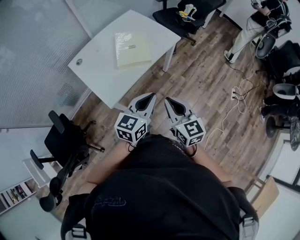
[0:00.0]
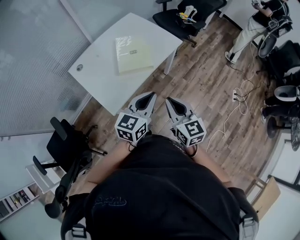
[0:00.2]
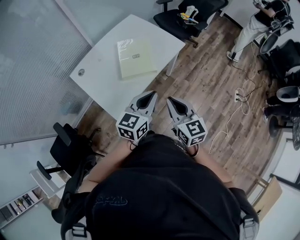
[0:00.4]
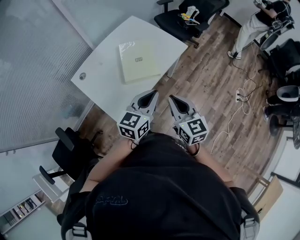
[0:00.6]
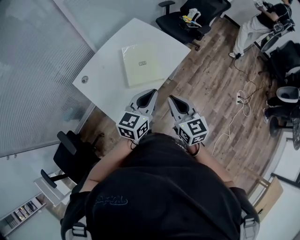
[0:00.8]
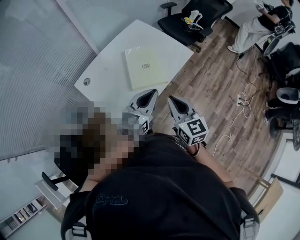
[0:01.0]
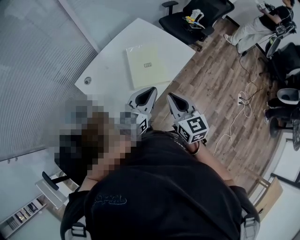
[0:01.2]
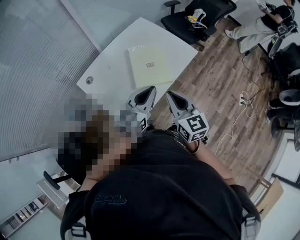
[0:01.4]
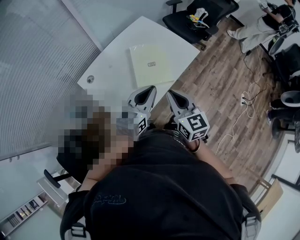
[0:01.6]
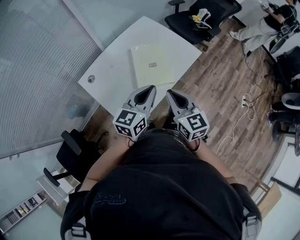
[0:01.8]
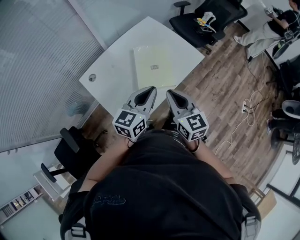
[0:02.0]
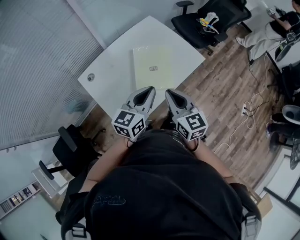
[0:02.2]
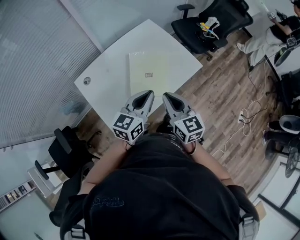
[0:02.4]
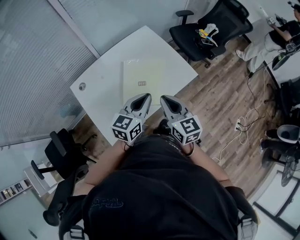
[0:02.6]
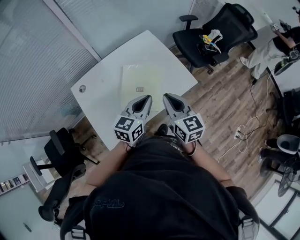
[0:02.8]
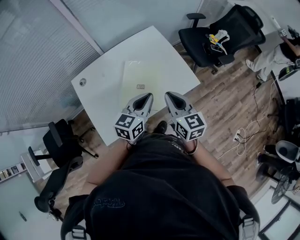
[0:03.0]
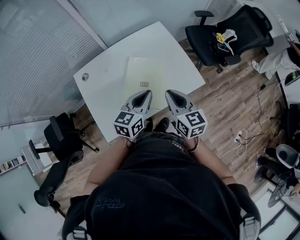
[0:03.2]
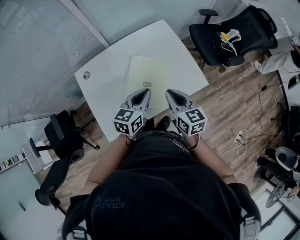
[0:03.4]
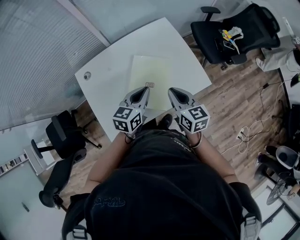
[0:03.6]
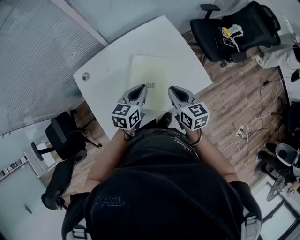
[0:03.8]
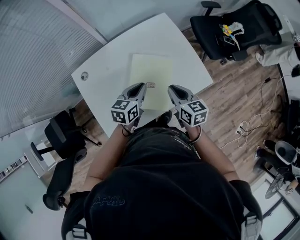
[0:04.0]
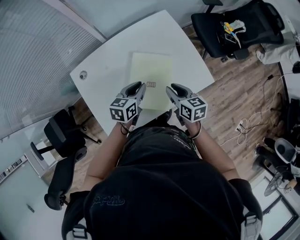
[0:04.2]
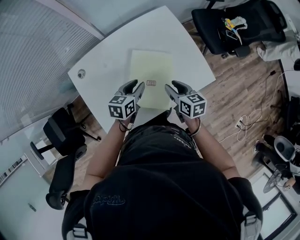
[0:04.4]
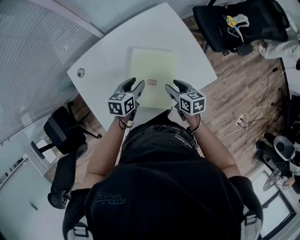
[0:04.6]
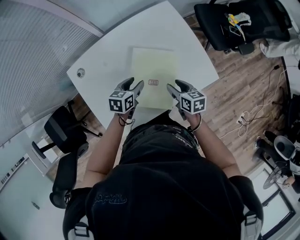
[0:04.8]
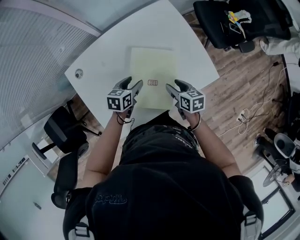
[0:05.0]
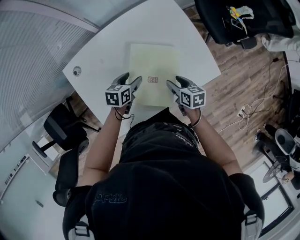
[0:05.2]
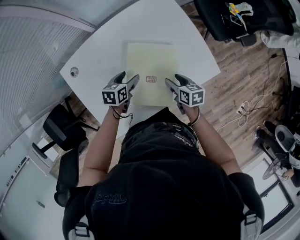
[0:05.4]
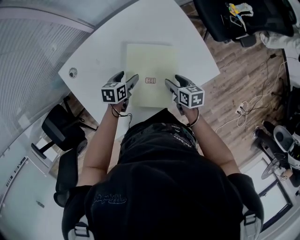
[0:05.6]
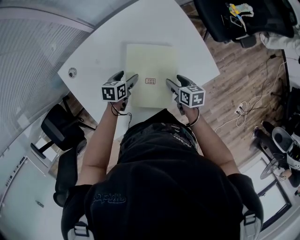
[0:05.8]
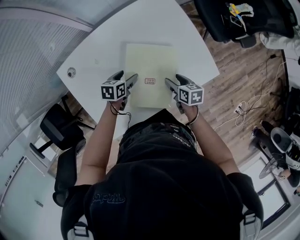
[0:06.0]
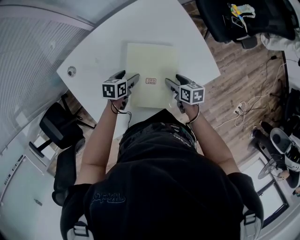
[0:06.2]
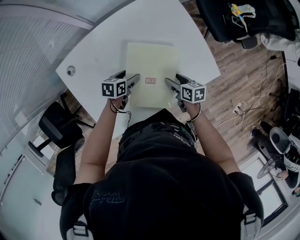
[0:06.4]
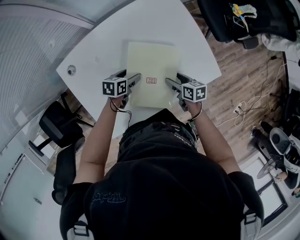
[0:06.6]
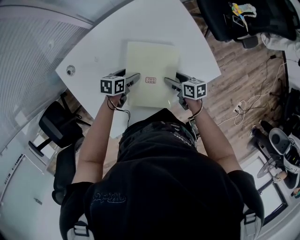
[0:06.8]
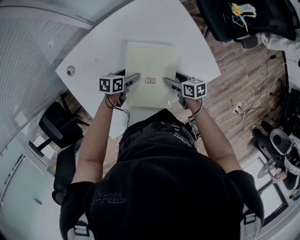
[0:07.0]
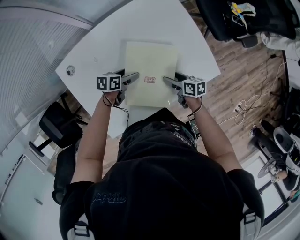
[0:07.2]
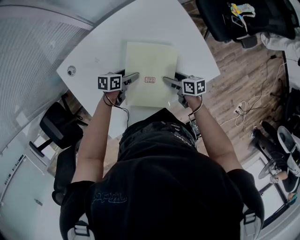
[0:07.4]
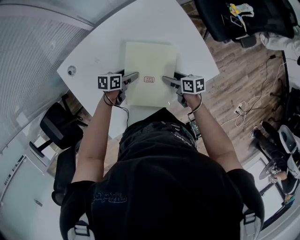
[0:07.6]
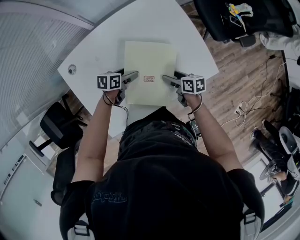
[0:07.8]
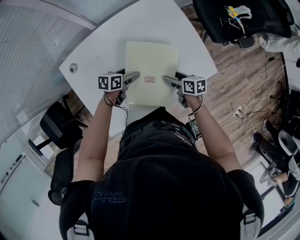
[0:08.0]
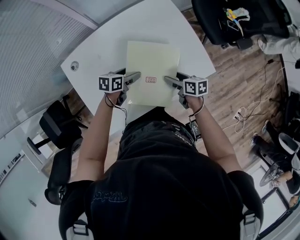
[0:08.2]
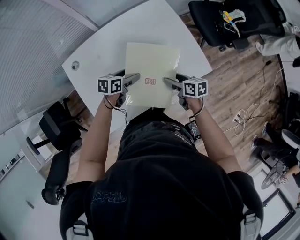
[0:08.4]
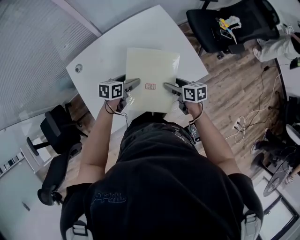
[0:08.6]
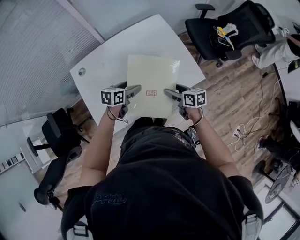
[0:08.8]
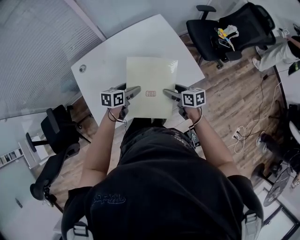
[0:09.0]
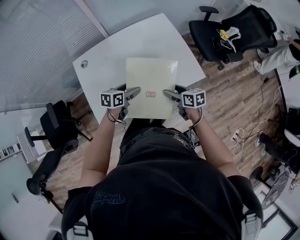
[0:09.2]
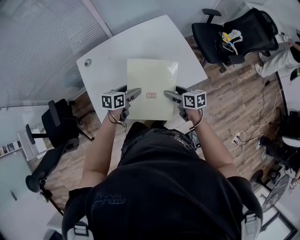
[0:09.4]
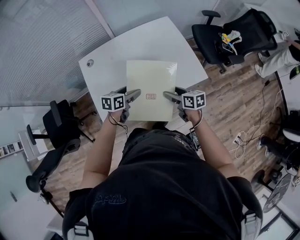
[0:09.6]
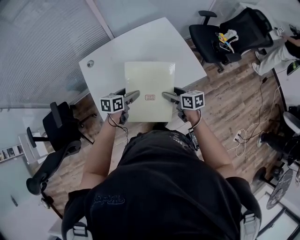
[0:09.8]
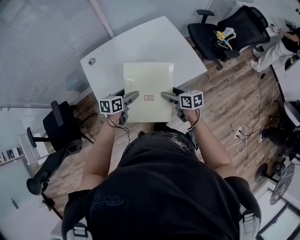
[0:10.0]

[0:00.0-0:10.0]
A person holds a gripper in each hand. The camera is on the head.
0:00.0 to 0:01.4: The grippers both shift forward and to the left by some 20 cm.
0:01.4 to 0:02.8: Both grippers travel together forward and to the right, roughly 20 cm.
0:02.8 to 0:04.2: The left gripper goes about 20 cm downward, forward and to the left, and rotates roughly 20 degrees, while the right gripper is displaced downward and forward by some 20 cm, and swivels some 30 degrees.
0:04.2 to 0:05.8: Both grippers travel together downward, about 15 cm. The left gripper turns by about 20 degrees, and opens. Meanwhile the right gripper opens its fingers.
0:05.8 to 0:07.2: The grippers move only a little.
0:07.2 to 0:08.6: The two grippers go some 10 cm upward.
0:08.6 to 0:10.0: The left gripper travels backward and to the left by roughly 15 cm, while the right gripper is displaced backward, to the left and upward by approximately 15 cm.

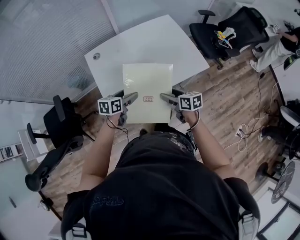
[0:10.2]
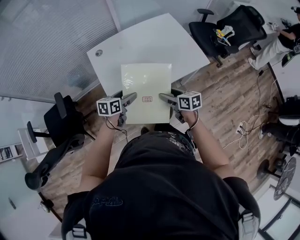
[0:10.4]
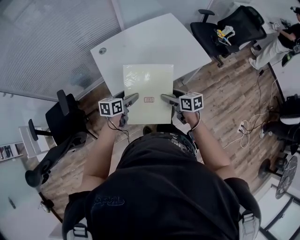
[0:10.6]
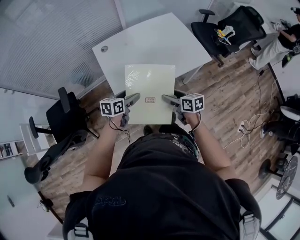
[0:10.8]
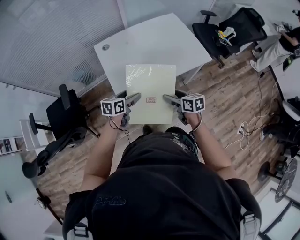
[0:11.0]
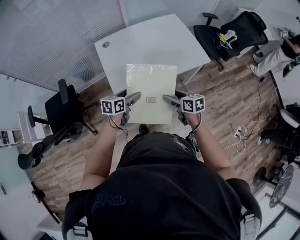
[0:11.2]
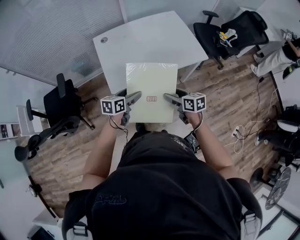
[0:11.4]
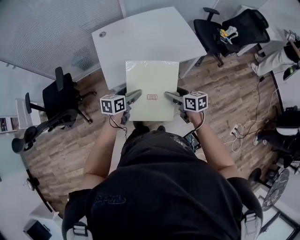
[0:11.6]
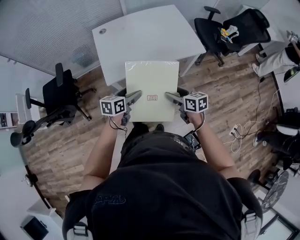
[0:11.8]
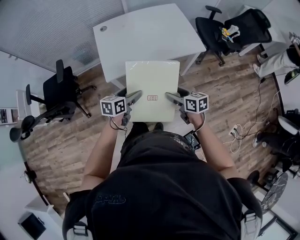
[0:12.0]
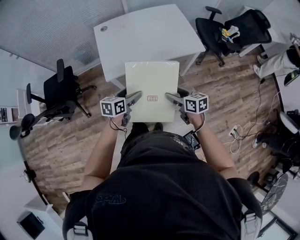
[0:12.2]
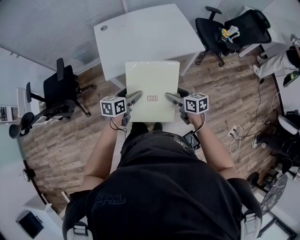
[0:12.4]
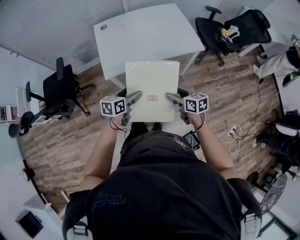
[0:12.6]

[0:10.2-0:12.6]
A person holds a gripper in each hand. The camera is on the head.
0:10.2 to 0:11.4: Both grippers travel together backward, some 15 cm.
0:11.4 to 0:12.6: The grippers both shift backward and to the right by some 10 cm.

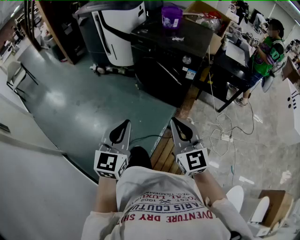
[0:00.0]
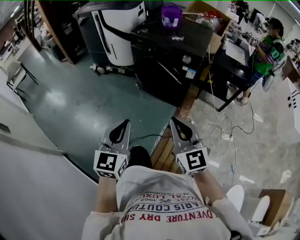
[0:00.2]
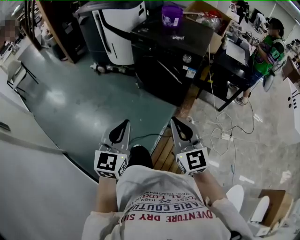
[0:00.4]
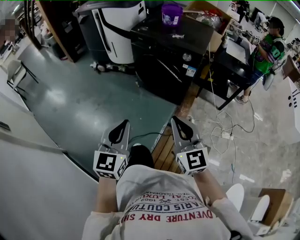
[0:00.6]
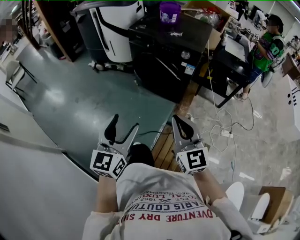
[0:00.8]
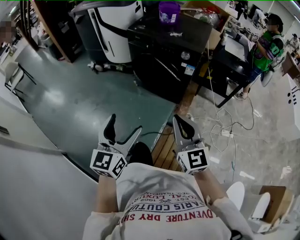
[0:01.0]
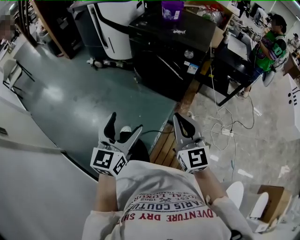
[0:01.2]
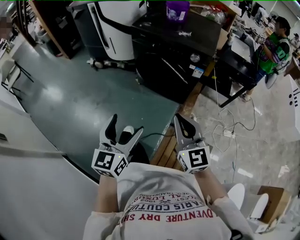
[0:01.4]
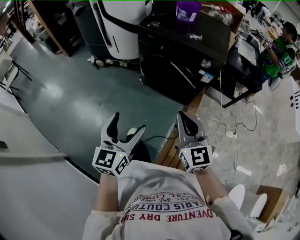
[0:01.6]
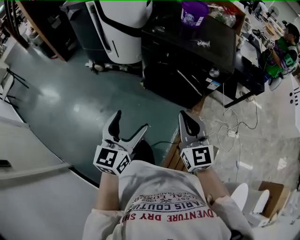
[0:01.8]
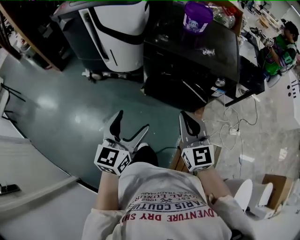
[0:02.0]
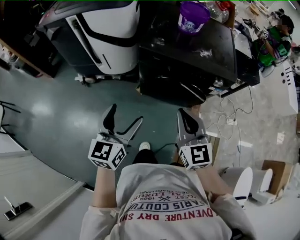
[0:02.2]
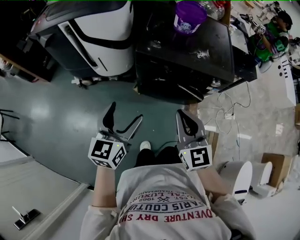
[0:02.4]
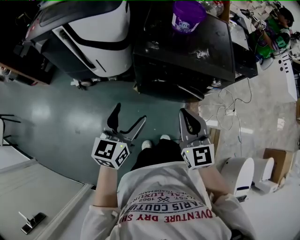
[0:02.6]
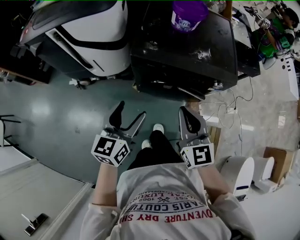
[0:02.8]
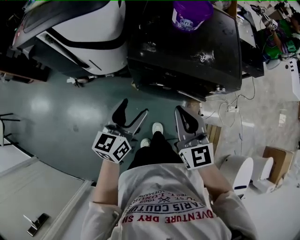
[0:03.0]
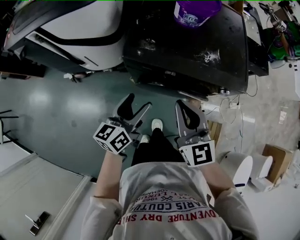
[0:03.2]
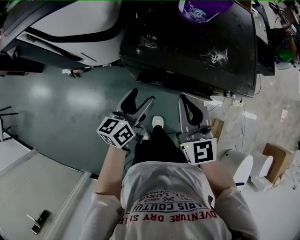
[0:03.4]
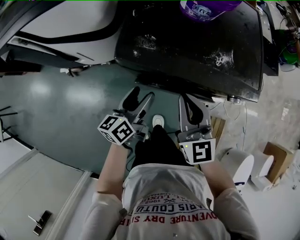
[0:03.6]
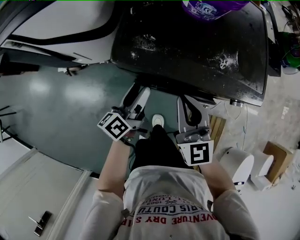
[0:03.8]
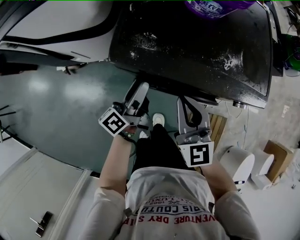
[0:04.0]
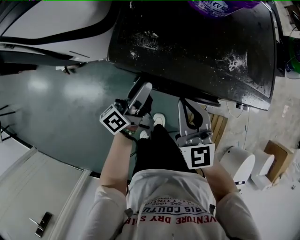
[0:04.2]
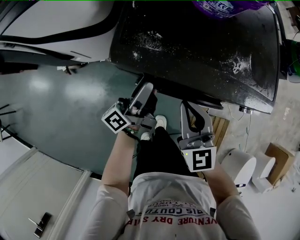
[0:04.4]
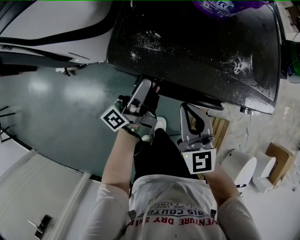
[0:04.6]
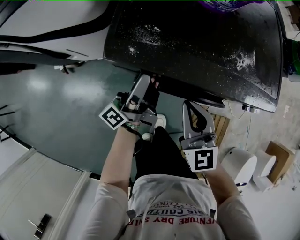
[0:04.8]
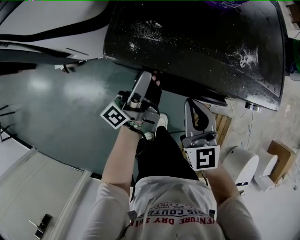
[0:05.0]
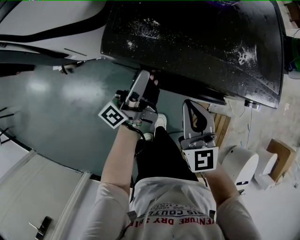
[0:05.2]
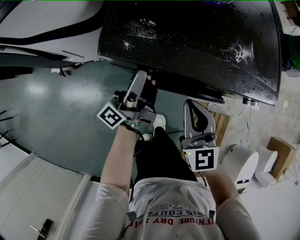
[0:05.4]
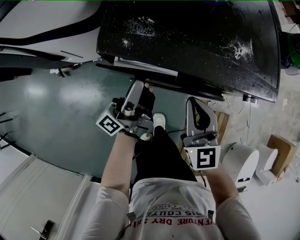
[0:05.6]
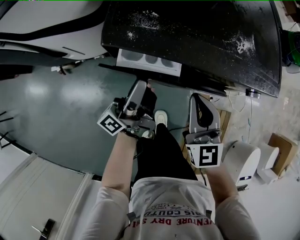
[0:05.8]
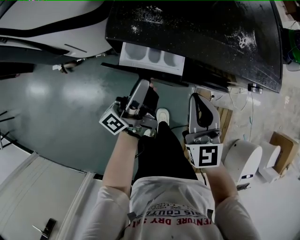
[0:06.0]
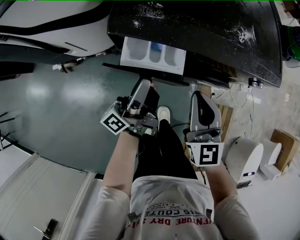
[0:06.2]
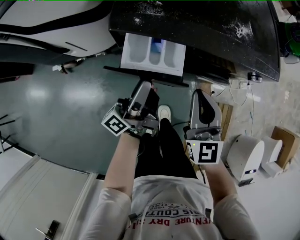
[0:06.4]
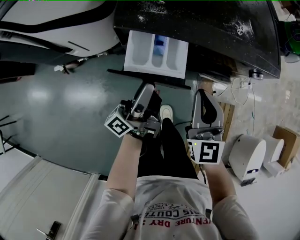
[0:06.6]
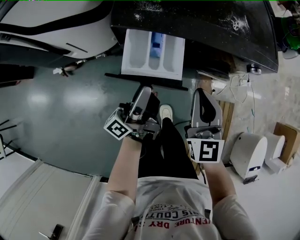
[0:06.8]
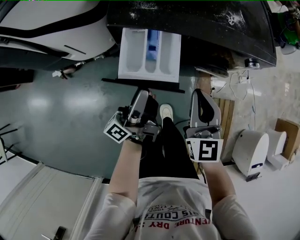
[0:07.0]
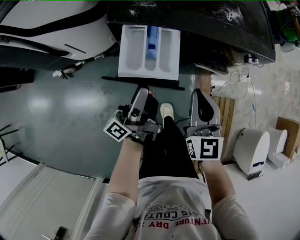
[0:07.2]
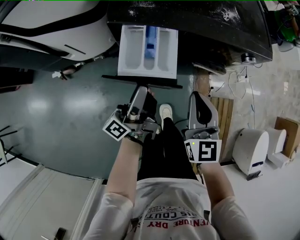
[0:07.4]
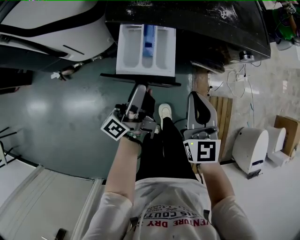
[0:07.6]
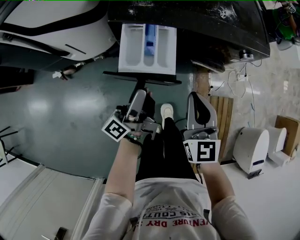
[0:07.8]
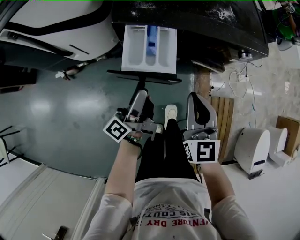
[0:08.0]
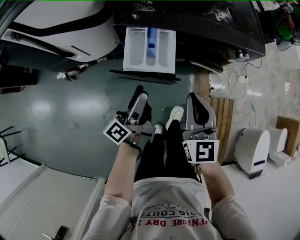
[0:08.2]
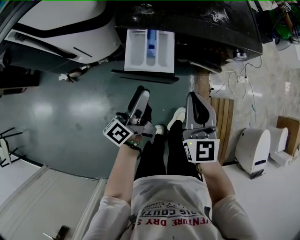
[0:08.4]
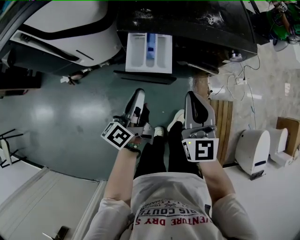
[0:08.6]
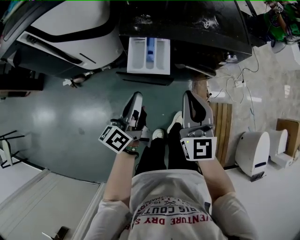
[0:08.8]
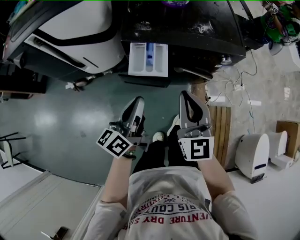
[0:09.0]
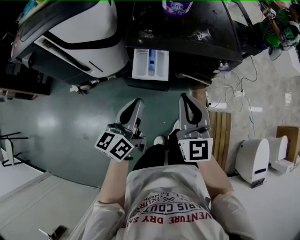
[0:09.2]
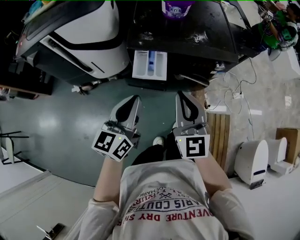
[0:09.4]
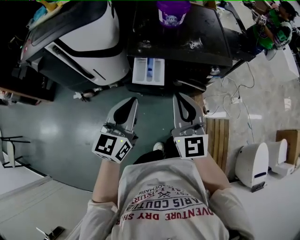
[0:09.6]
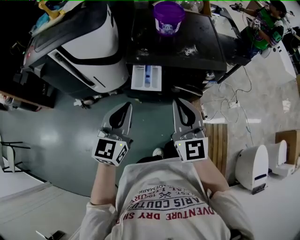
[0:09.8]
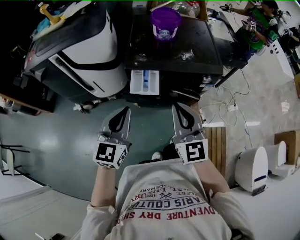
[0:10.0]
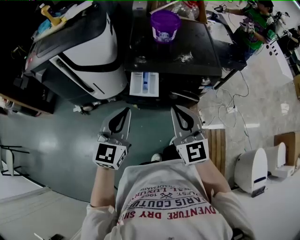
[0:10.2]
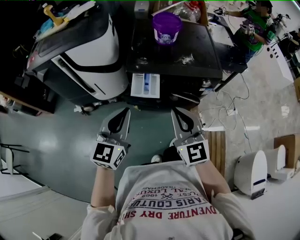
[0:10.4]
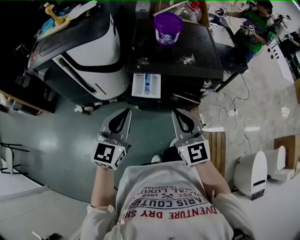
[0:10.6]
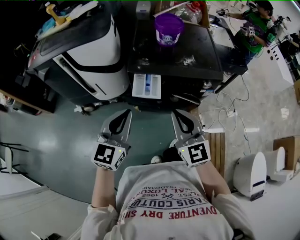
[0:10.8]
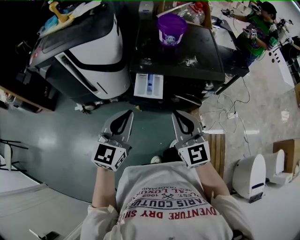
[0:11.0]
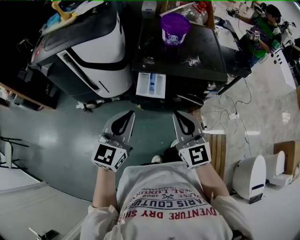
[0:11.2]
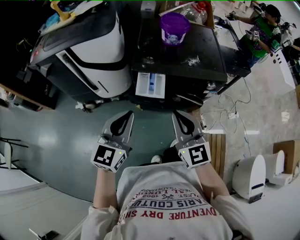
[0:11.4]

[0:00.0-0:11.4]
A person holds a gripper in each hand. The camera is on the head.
0:00.0 to 0:01.4: The two grippers go approximately 10 cm forward. The left gripper opens its fingers.
0:01.4 to 0:02.8: The two grippers travel together, forward and to the left, roughly 40 cm. The right gripper swivels about 20 degrees. The left gripper turns by approximately 20 degrees.
0:02.8 to 0:04.2: Both grippers move forward and downward, about 25 cm. The left gripper twists approximately 50 degrees counterclockwise, seen from behind.
0:04.2 to 0:05.6: The right gripper moves roughly 5 cm.
0:05.6 to 0:07.2: Both grippers move backward, approximately 10 cm.
0:07.2 to 0:08.6: The left gripper shifts by roughly 5 cm, turns by approximately 30 degrees, and closes its fingers. Meanwhile the right gripper travels upward by about 10 cm.
0:08.6 to 0:10.0: Both grippers move upward, some 20 cm. The left gripper rotates around the line of its fingers by some 70 degrees, clockwise from behind.
0:10.0 to 0:11.4: There are only small adjustments of the grippers.
